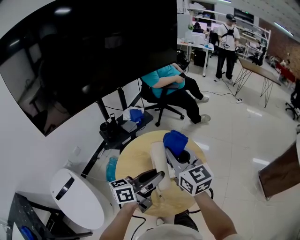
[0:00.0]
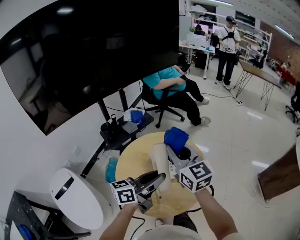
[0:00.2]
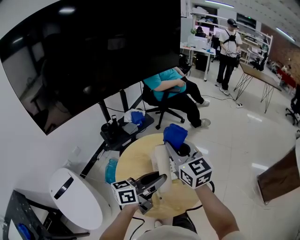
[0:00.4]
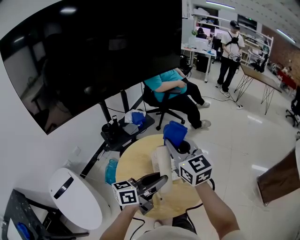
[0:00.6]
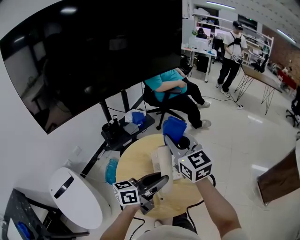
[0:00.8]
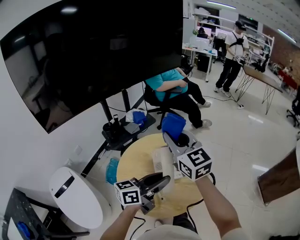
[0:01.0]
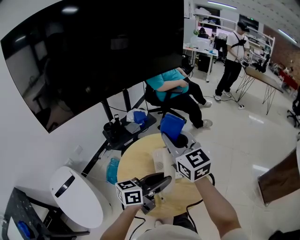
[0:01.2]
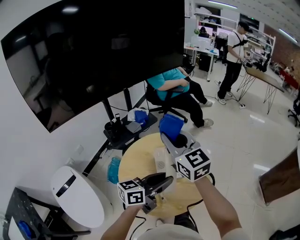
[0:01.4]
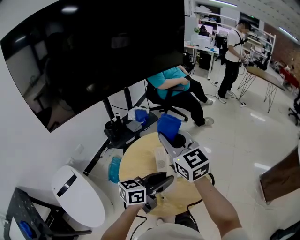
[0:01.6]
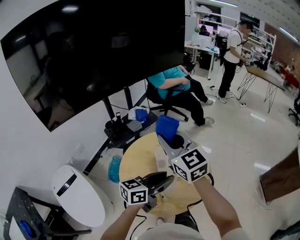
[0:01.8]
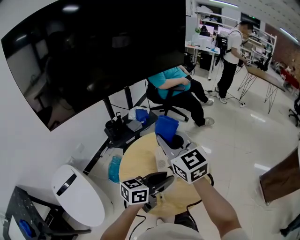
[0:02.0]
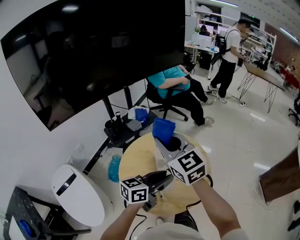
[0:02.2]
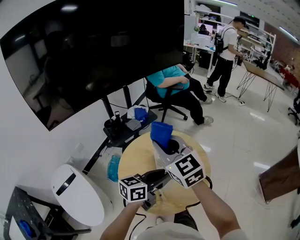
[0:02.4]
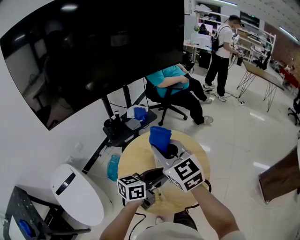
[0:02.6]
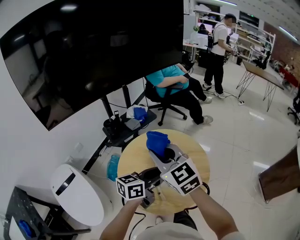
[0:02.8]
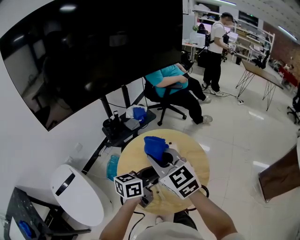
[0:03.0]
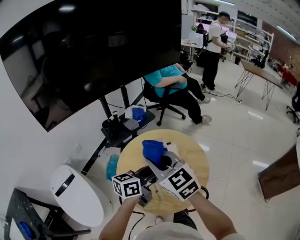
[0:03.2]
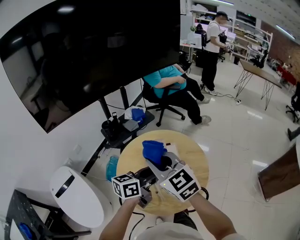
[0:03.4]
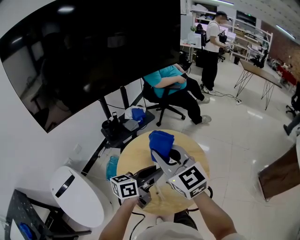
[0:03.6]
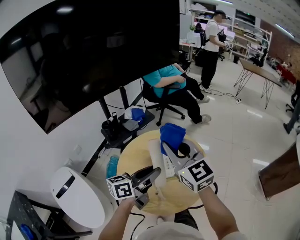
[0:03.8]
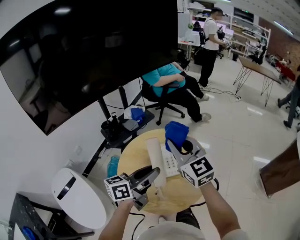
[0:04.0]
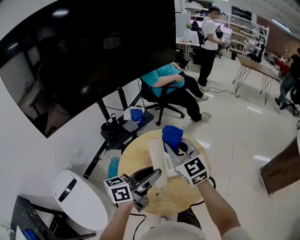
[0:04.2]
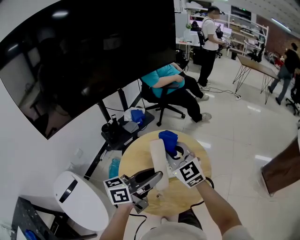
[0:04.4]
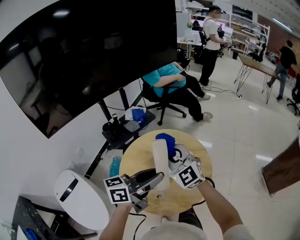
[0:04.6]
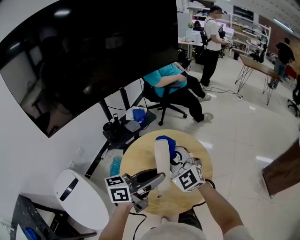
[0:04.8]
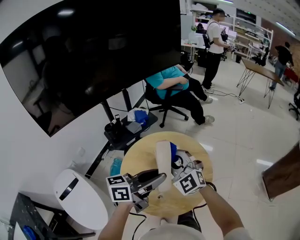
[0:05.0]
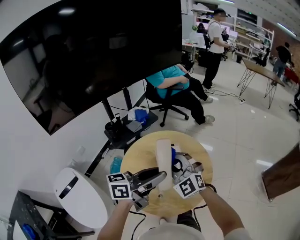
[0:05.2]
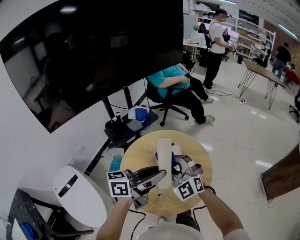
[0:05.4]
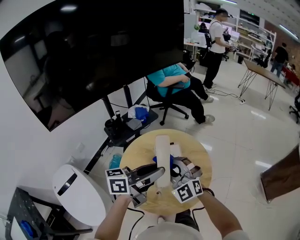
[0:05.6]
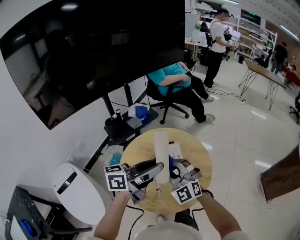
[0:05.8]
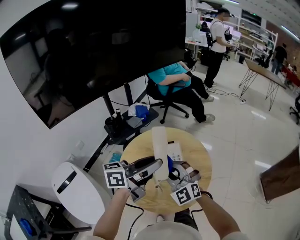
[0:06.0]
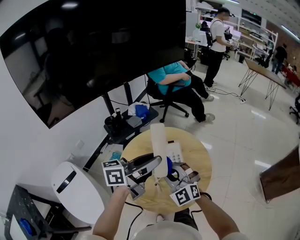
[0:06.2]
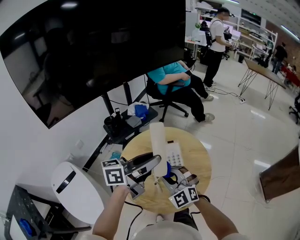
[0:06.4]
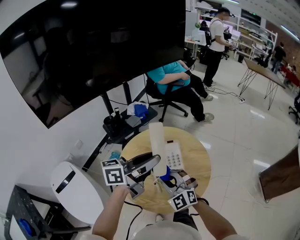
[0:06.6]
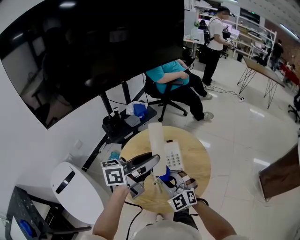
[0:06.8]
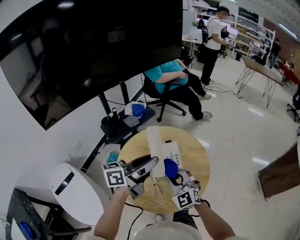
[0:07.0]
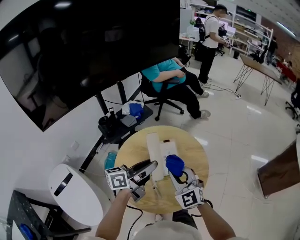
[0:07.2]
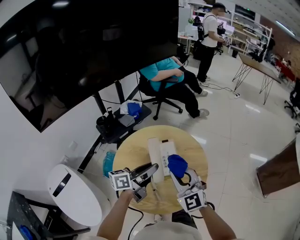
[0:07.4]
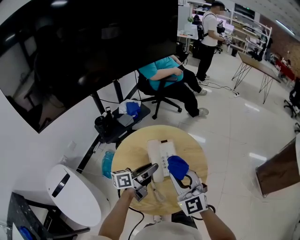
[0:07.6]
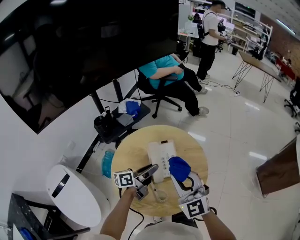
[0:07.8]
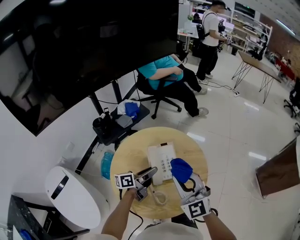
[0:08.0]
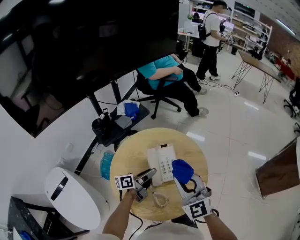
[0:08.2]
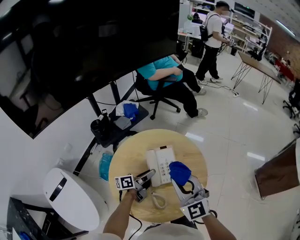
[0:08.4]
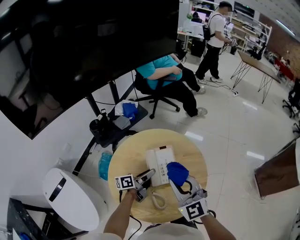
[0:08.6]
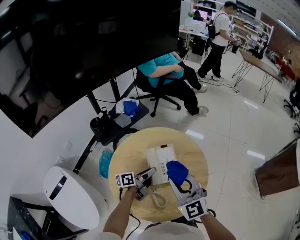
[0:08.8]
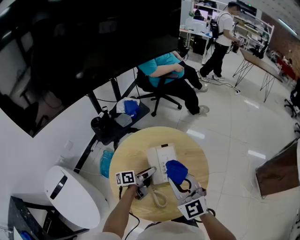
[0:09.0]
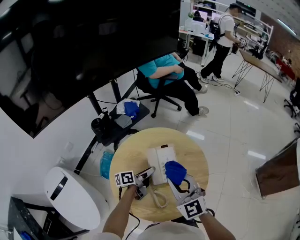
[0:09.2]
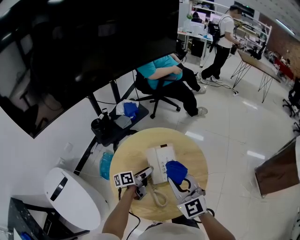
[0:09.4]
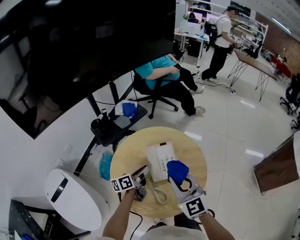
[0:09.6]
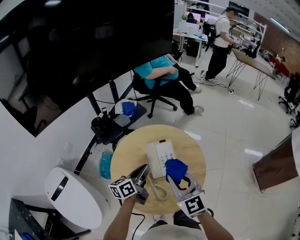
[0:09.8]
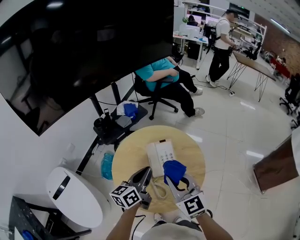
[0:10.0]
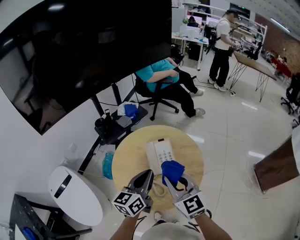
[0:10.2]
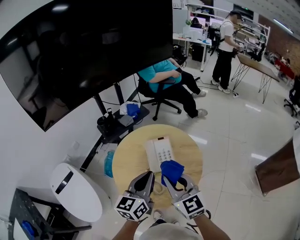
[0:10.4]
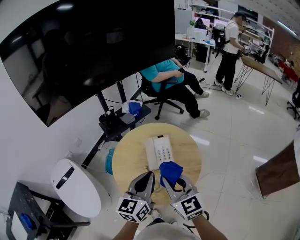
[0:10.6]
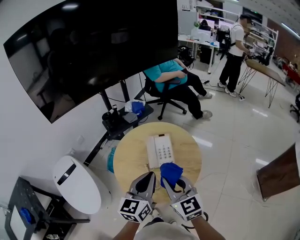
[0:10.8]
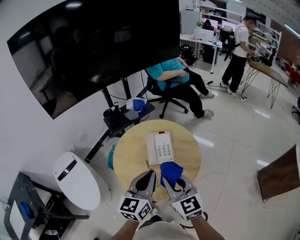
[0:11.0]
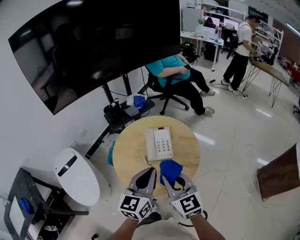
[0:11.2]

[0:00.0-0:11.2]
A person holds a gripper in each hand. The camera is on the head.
0.0 to 1.6 s: The right gripper is displaced upward and to the left by roughly 10 cm.
1.6 to 3.2 s: The right gripper heads backward and downward, covering some 10 cm.
3.2 to 4.8 s: The left gripper heads upward, covering some 5 cm. The right gripper travels forward by some 5 cm, and rotates about 30 degrees.
4.8 to 6.4 s: The left gripper ends up approximately 5 cm from where it was, while the right gripper shifts roughly 10 cm downward and backward.
6.4 to 8.0 s: The left gripper travels downward by roughly 25 cm, and rotates about 30 degrees, while the right gripper heads to the right, covering about 10 cm, and changes its angle by roughly 20 degrees.
9.6 to 11.2 s: The left gripper moves upward and backward, about 30 cm, rolls clockwise, seen from behind, by about 50 degrees, and closes up; the right gripper goes about 15 cm backward.

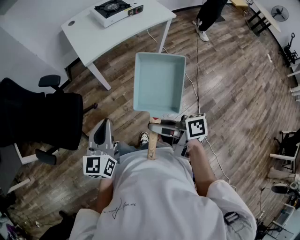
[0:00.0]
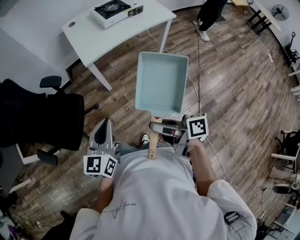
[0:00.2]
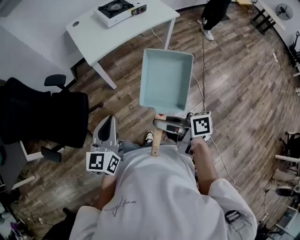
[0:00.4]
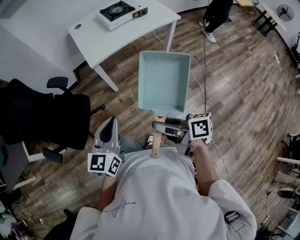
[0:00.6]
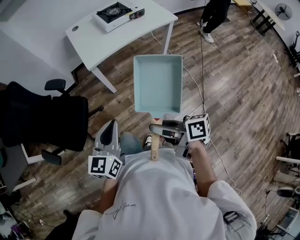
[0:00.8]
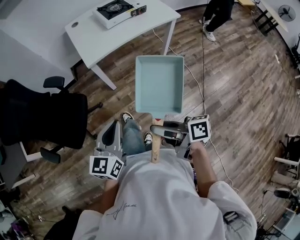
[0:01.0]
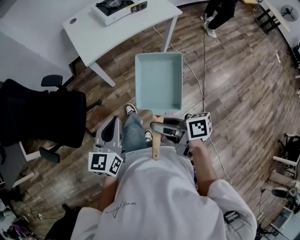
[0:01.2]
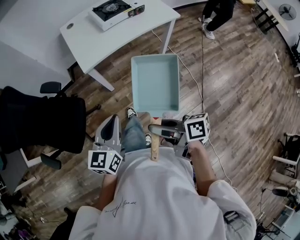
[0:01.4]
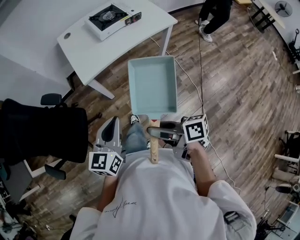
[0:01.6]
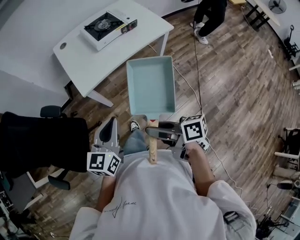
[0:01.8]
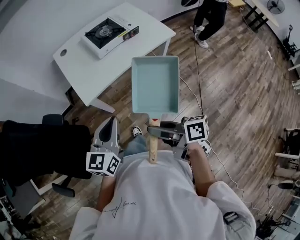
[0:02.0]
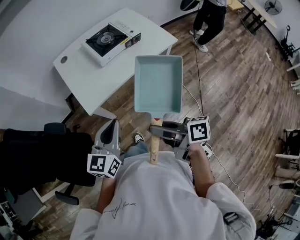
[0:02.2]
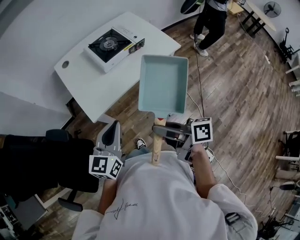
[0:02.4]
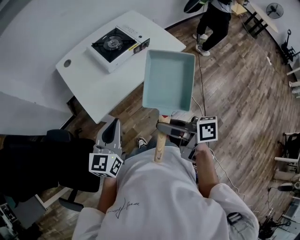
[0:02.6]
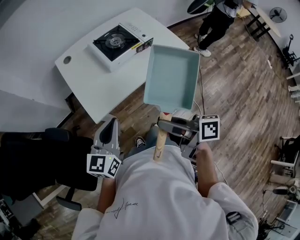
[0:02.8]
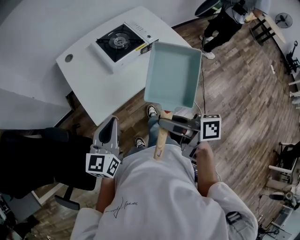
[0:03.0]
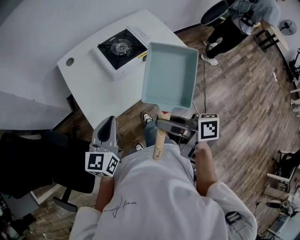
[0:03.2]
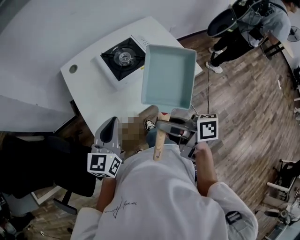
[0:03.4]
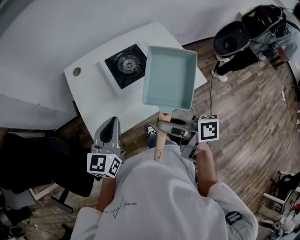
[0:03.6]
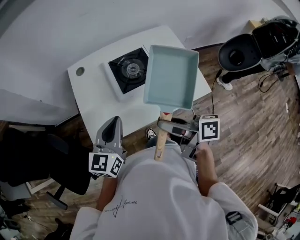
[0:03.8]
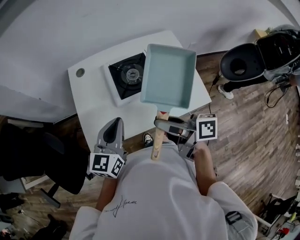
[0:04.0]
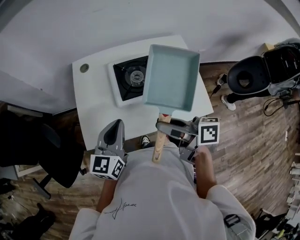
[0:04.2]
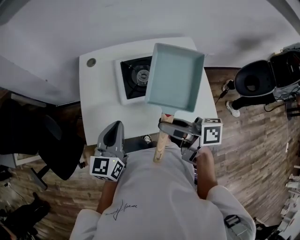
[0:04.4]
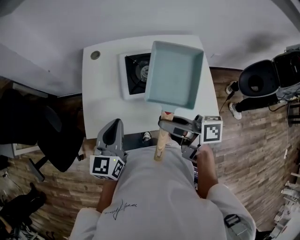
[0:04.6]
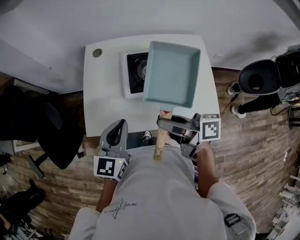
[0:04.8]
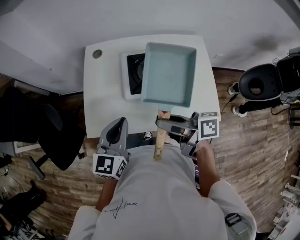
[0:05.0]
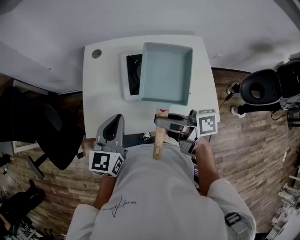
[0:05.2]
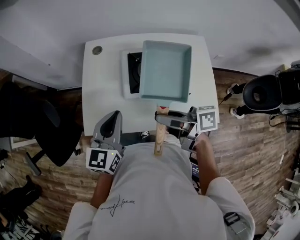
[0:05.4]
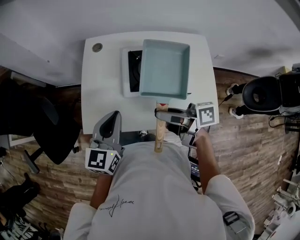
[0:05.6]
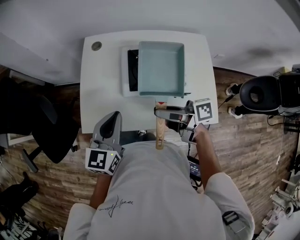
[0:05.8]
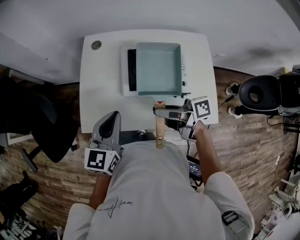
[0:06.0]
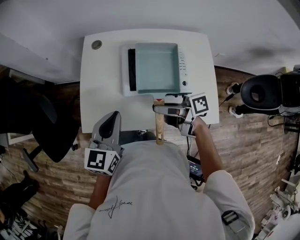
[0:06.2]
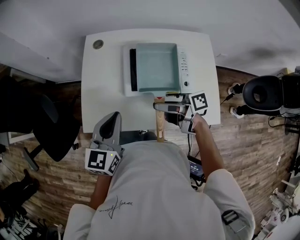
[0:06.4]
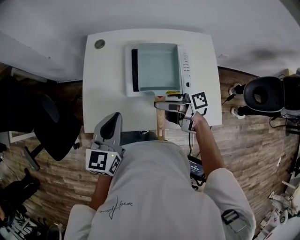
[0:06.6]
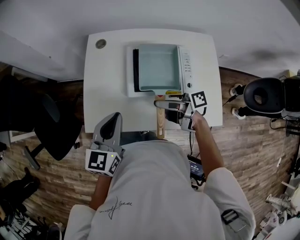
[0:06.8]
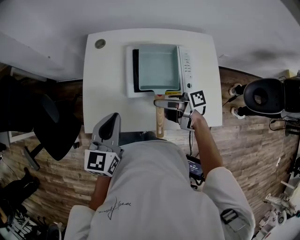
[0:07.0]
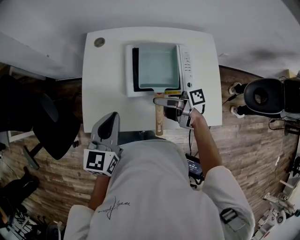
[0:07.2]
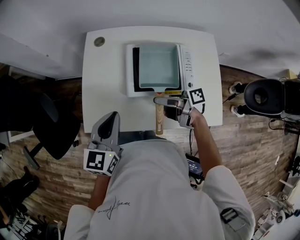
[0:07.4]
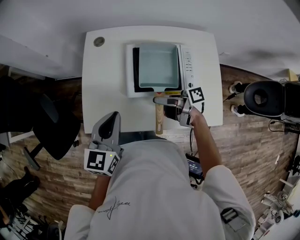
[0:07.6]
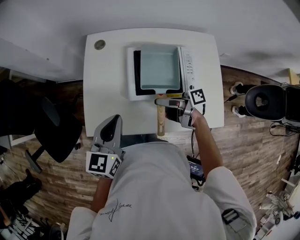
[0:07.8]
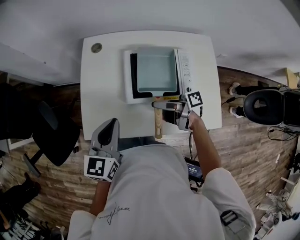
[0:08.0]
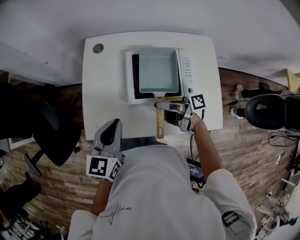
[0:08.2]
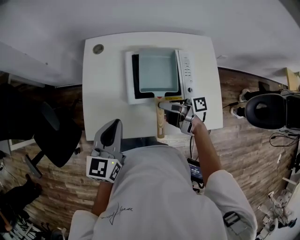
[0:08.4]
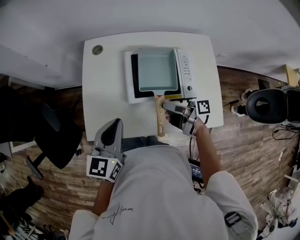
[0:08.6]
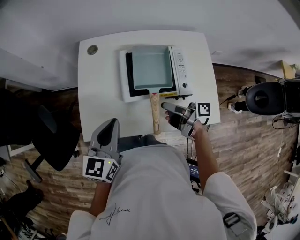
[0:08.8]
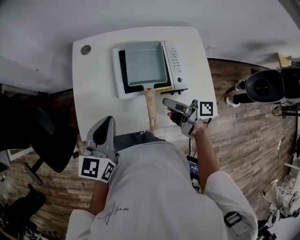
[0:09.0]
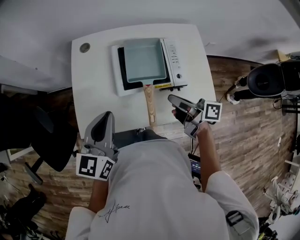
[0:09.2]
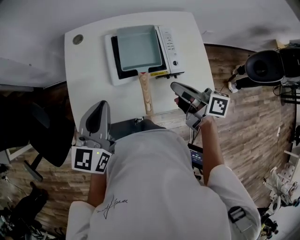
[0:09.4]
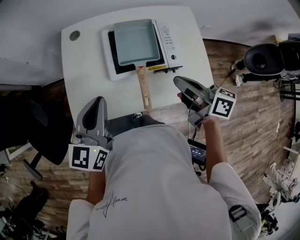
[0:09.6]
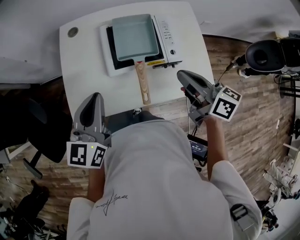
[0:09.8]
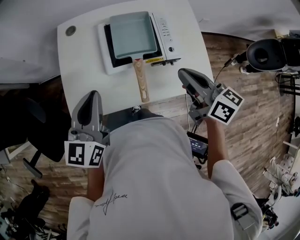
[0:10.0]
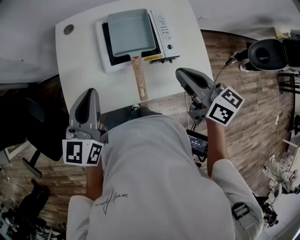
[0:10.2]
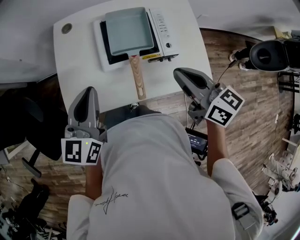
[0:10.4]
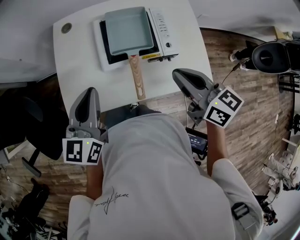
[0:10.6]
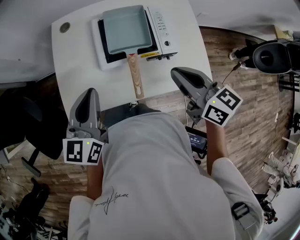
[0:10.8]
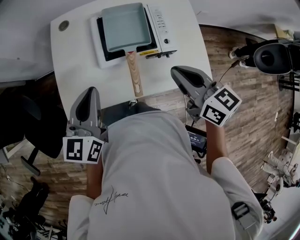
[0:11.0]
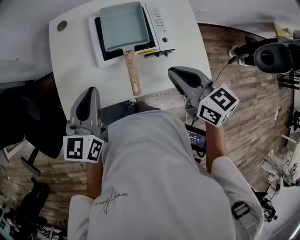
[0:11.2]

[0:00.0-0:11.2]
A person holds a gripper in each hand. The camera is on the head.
0.0 to 1.6 s: The left gripper shifts roughly 15 cm to the right and forward. The right gripper goes about 10 cm forward and to the right.
1.6 to 3.2 s: The grippers both shift forward by about 30 cm.
3.2 to 4.8 s: The left gripper ends up some 15 cm from where it was, and changes its angle by approximately 30 degrees. The right gripper shifts by about 20 cm, and turns by approximately 30 degrees.
4.8 to 6.4 s: The right gripper goes approximately 10 cm downward and forward.
6.4 to 8.0 s: The right gripper ends up some 5 cm from where it was.
8.0 to 9.6 s: The right gripper goes approximately 15 cm upward, to the right and backward, swivels roughly 50 degrees, and closes up. Meanwhile the left gripper moves approximately 5 cm.
9.6 to 11.2 s: The right gripper turns by about 30 degrees.

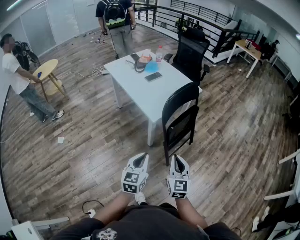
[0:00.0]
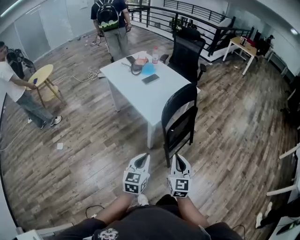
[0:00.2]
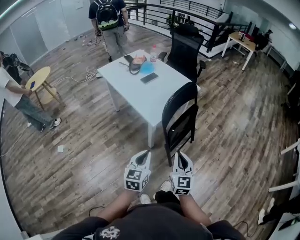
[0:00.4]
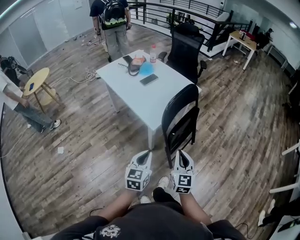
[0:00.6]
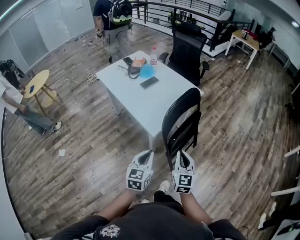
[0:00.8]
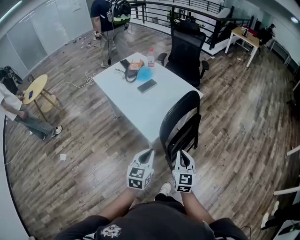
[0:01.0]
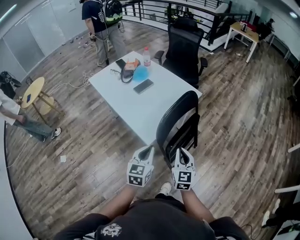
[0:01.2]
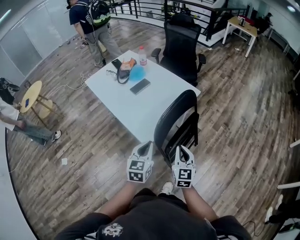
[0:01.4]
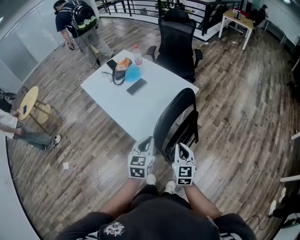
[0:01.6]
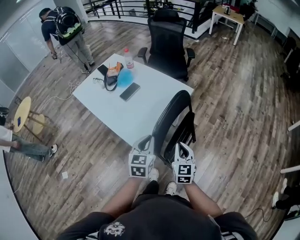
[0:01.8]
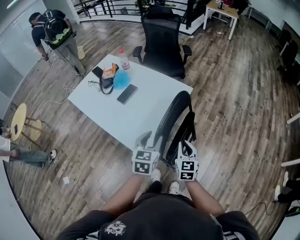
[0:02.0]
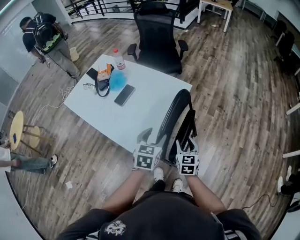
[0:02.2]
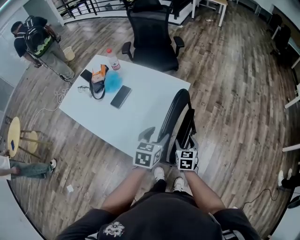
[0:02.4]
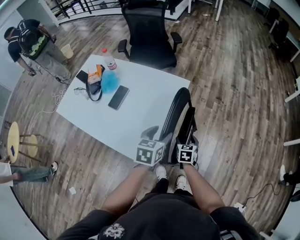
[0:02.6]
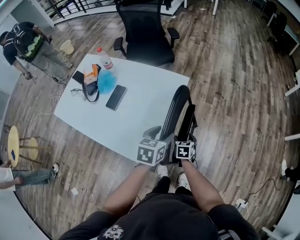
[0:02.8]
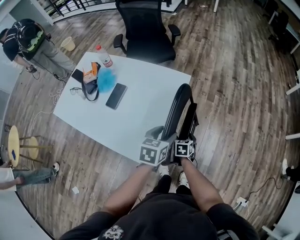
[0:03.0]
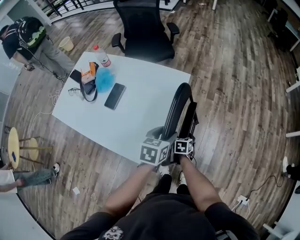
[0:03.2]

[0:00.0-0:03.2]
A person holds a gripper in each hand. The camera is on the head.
0.0 to 1.6 s: Both grippers travel together forward, about 35 cm.
1.6 to 3.2 s: The left gripper shifts by roughly 20 cm, swivels some 40 degrees, and opens its fingers; the right gripper is displaced downward by roughly 25 cm, tilts its fingers roughly 40 degrees downward, and opens.
